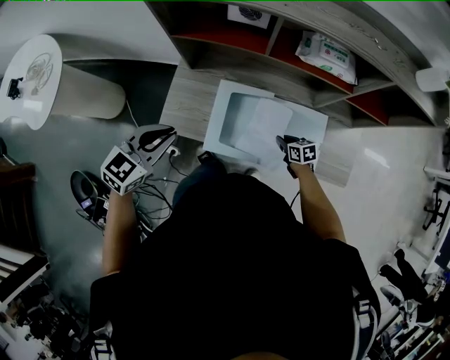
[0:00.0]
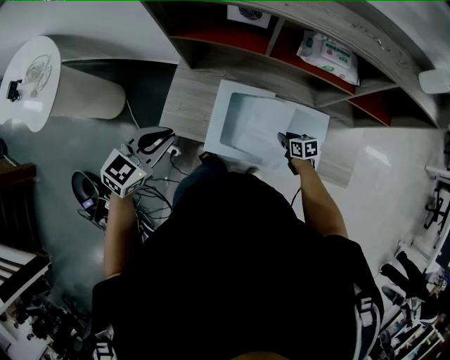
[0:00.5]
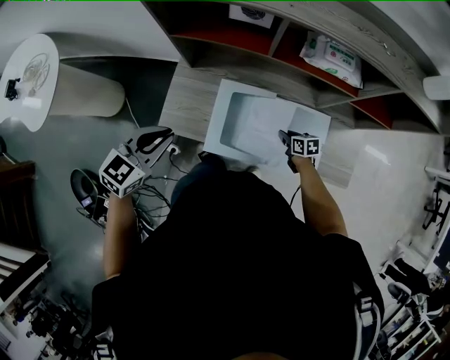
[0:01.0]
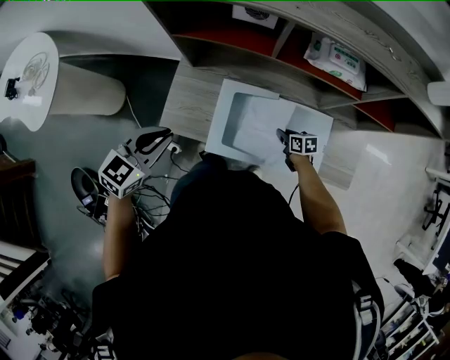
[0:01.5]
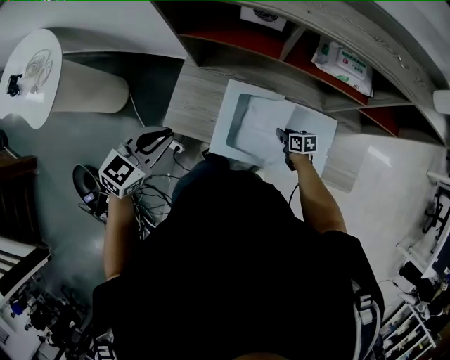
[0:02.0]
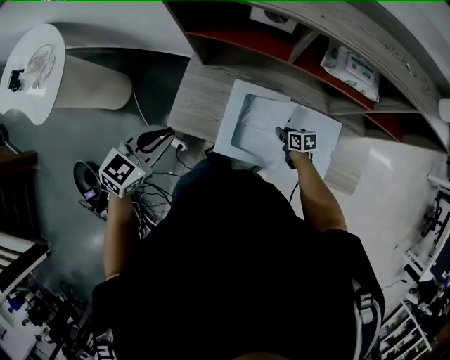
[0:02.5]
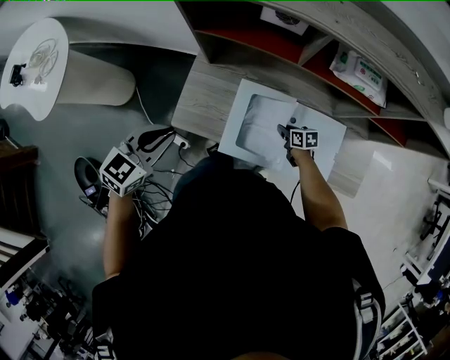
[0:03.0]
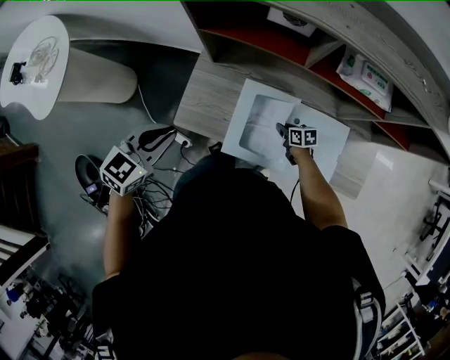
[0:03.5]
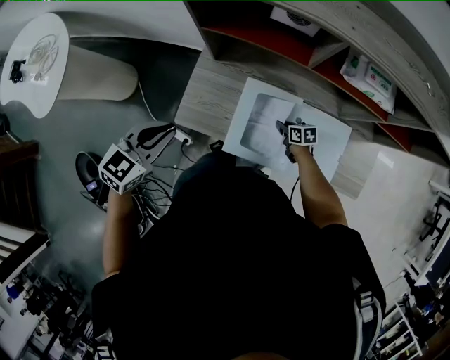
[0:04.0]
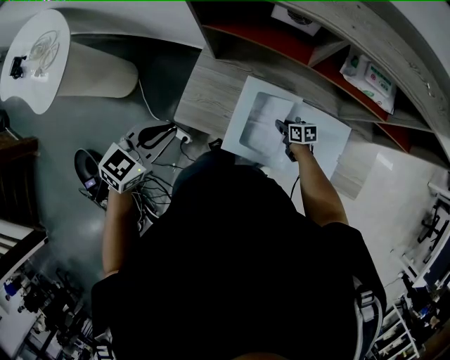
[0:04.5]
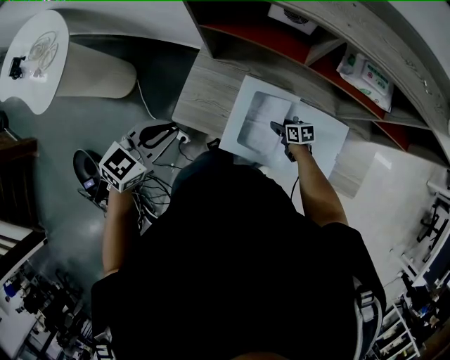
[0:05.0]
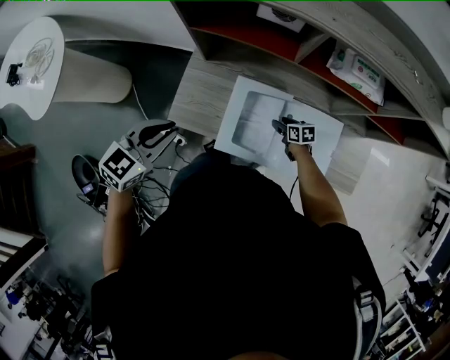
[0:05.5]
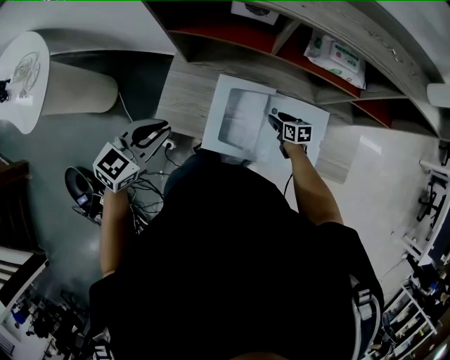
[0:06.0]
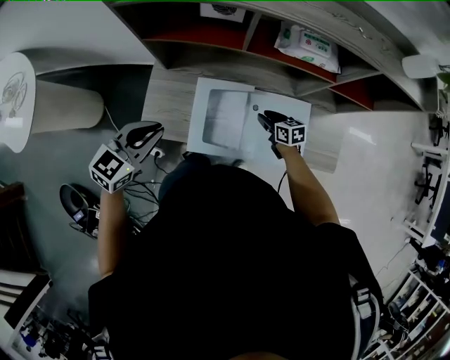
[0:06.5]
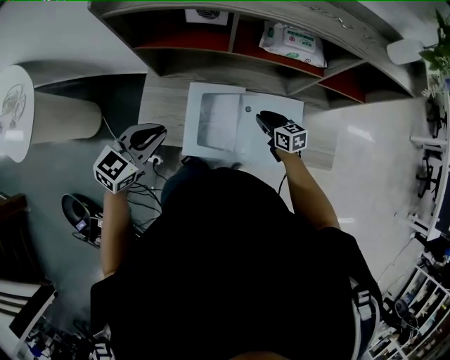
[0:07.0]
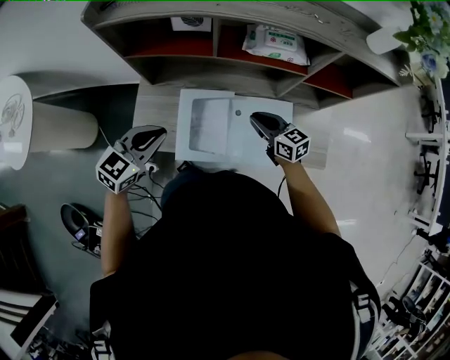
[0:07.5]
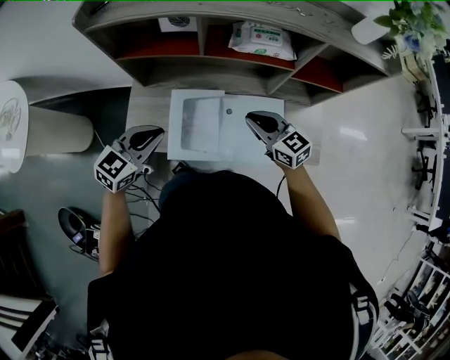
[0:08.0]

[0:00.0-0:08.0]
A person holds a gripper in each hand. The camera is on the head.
0:00.0 to 0:02.0: The right gripper moves some 5 cm.
0:02.0 to 0:04.0: The left gripper changes place by some 5 cm; the right gripper is displaced to the left by some 5 cm.
0:04.0 to 0:06.0: Both grippers travel together to the right, some 5 cm. The right gripper opens up.
0:06.0 to 0:08.0: The right gripper travels upward by approximately 30 cm, turns by roughly 40 degrees, and closes up; the left gripper goes some 15 cm to the right.

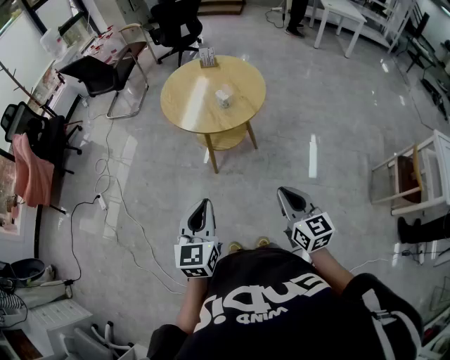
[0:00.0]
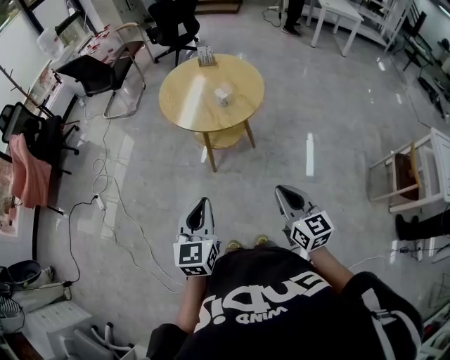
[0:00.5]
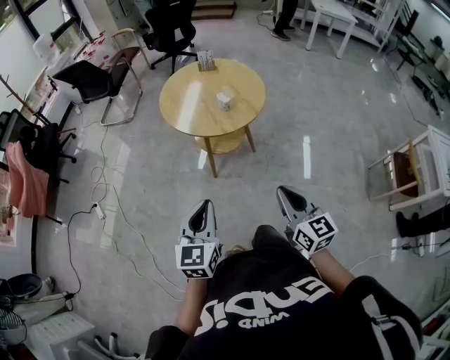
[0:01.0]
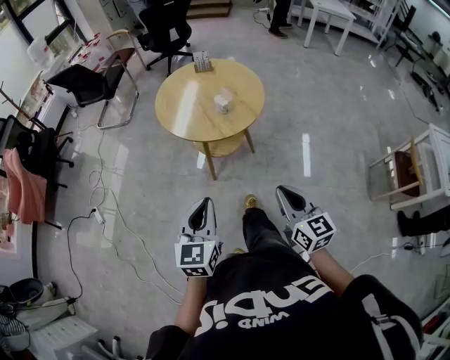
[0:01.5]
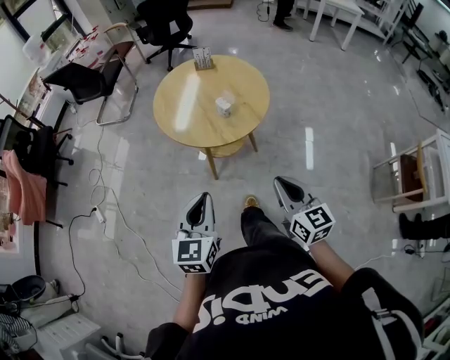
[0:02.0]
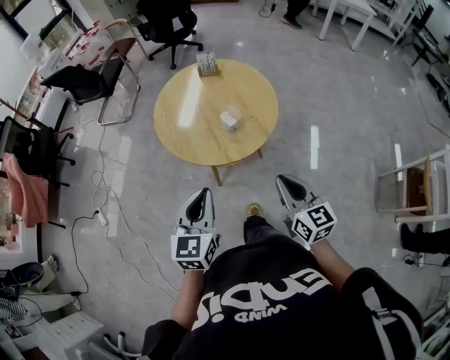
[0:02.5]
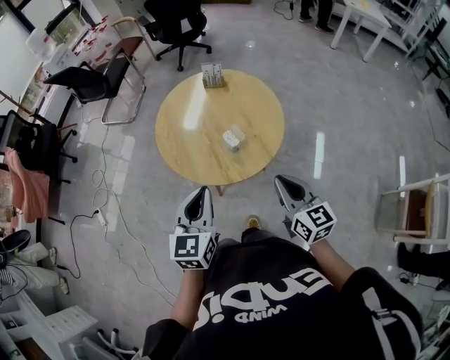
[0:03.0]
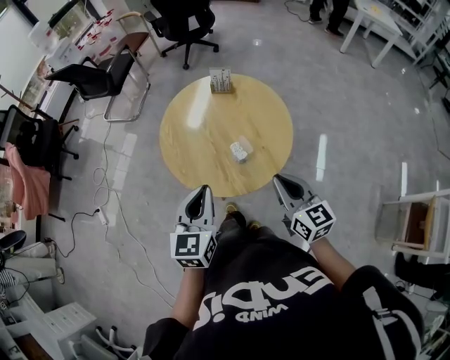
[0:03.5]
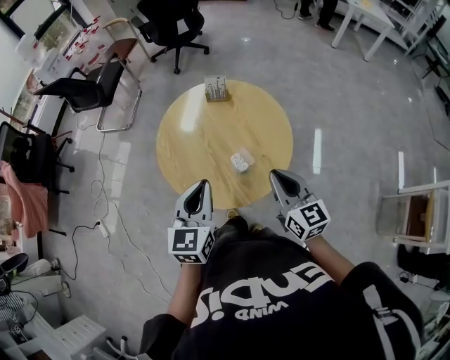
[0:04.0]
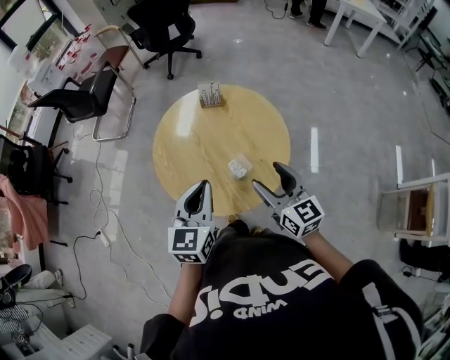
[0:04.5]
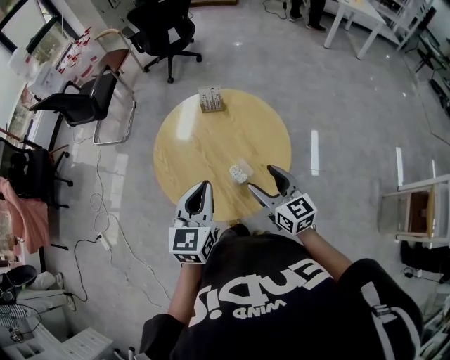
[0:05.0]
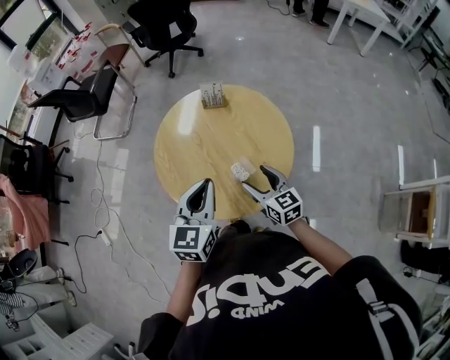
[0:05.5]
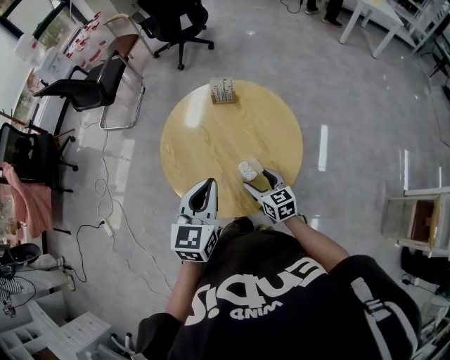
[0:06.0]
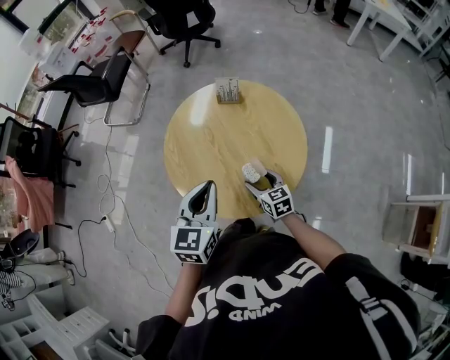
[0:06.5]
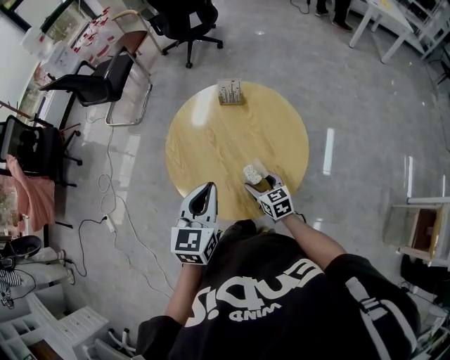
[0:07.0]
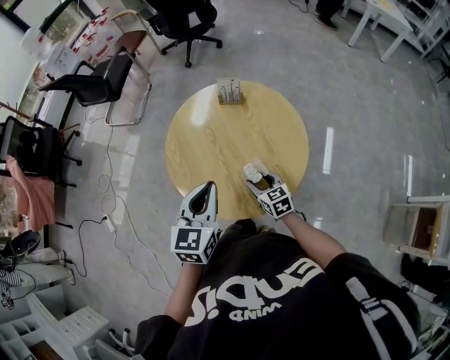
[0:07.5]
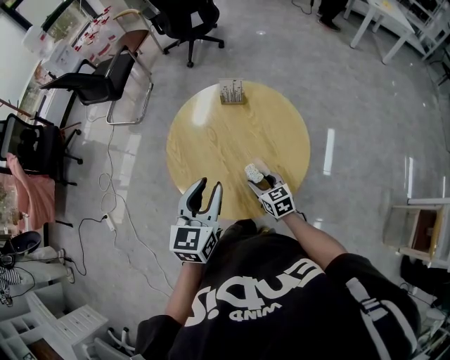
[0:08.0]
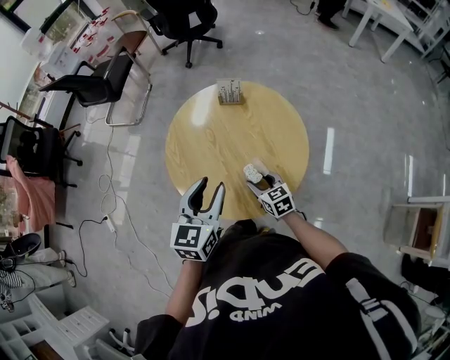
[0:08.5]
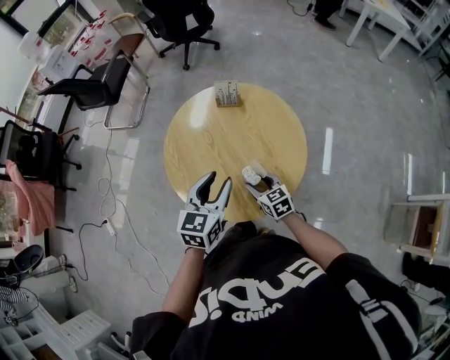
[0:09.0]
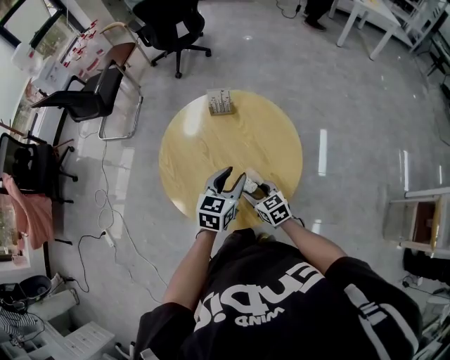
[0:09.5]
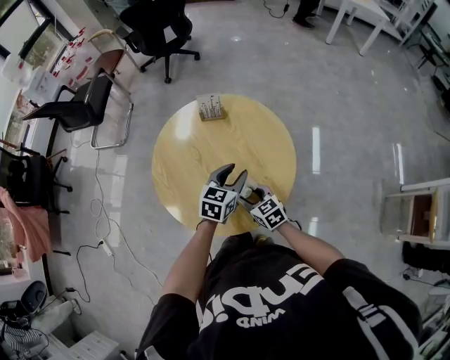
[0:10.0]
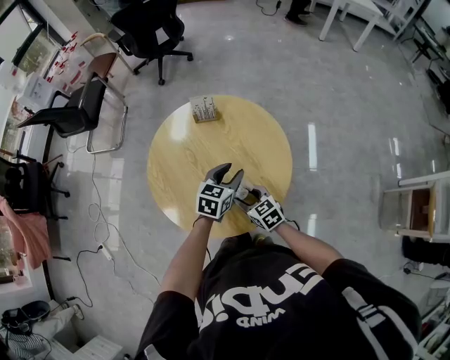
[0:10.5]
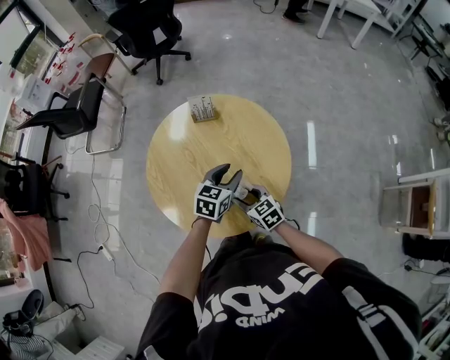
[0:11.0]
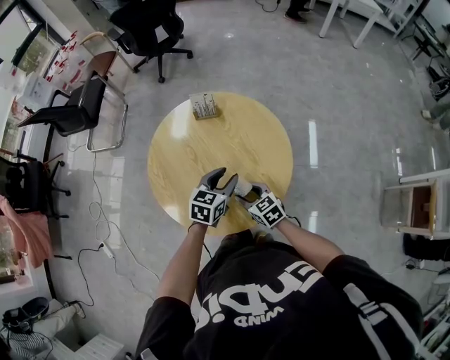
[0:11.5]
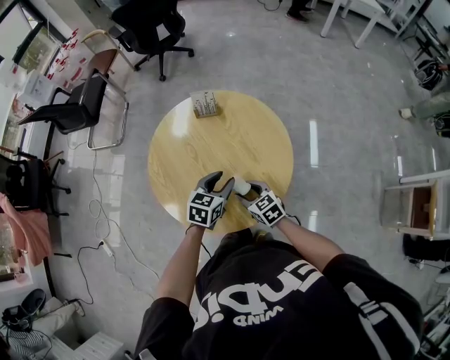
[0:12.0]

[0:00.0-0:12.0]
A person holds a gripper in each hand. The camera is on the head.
0:00.0 to 0:02.0: Both grippers move forward, some 15 cm.
0:02.0 to 0:04.0: Both grippers move forward, about 35 cm.
0:04.0 to 0:06.0: The right gripper is displaced downward by approximately 20 cm, turns by some 20 degrees, and opens up; the left gripper shifts by roughly 5 cm.
0:06.0 to 0:08.0: The left gripper opens.
0:08.0 to 0:10.0: The left gripper goes roughly 20 cm downward, to the right and forward, and turns by some 30 degrees.
0:10.0 to 0:12.0: The left gripper changes place by approximately 5 cm.

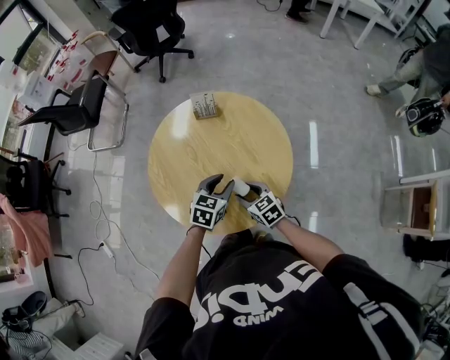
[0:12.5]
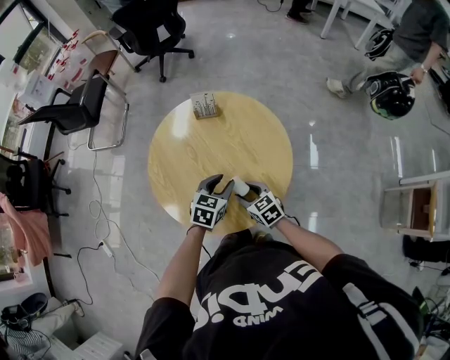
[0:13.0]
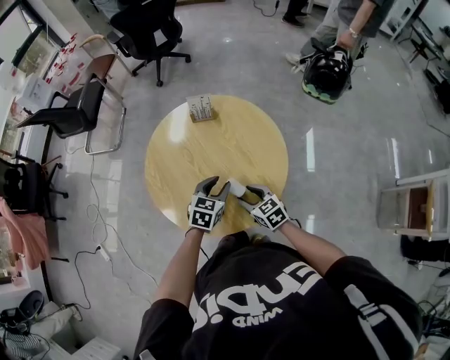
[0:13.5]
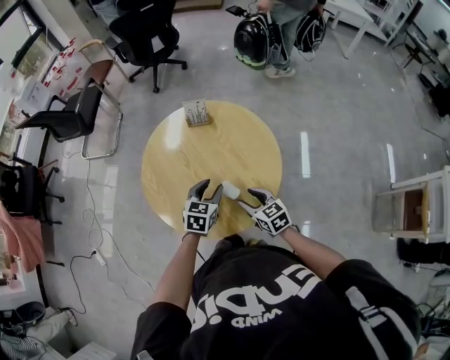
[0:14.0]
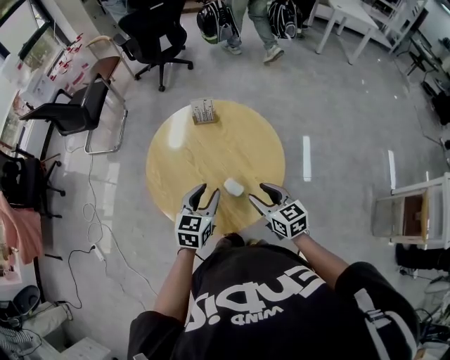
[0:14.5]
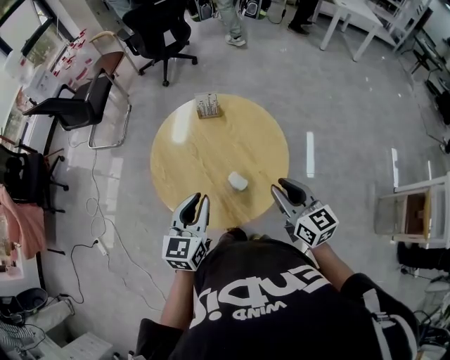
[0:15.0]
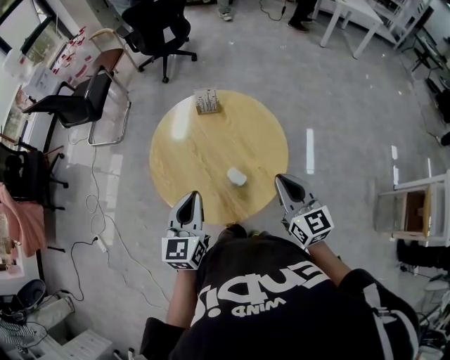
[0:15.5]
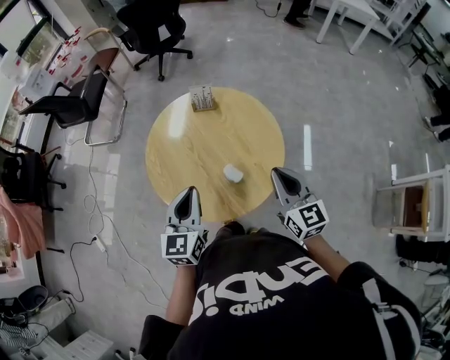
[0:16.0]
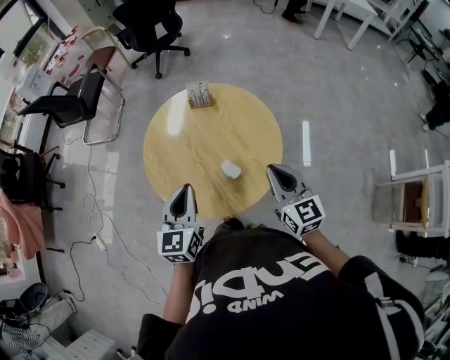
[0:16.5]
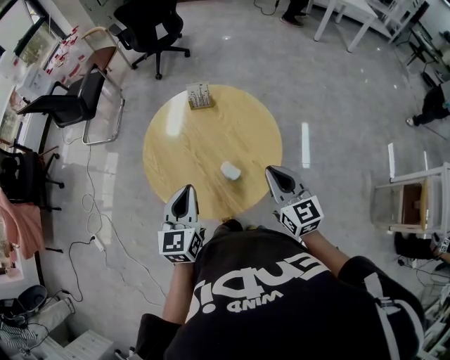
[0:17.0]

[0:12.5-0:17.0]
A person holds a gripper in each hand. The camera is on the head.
0:12.5 to 0:14.5: The right gripper travels upward and to the right by roughly 15 cm; the left gripper goes approximately 10 cm upward.
0:14.5 to 0:17.0: The right gripper heads upward, covering about 10 cm, and closes its fingers. Meanwhile the left gripper heads upward, to the left and backward, covering approximately 10 cm, and closes its fingers.

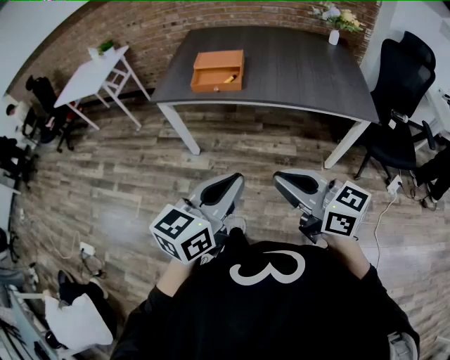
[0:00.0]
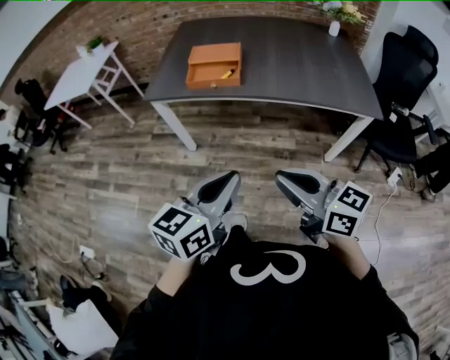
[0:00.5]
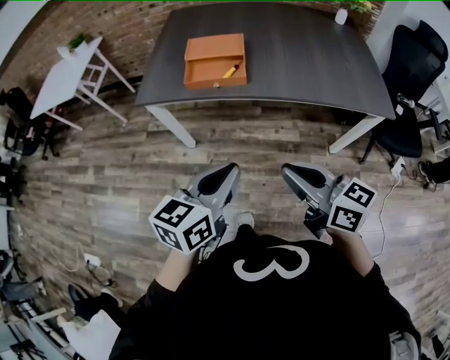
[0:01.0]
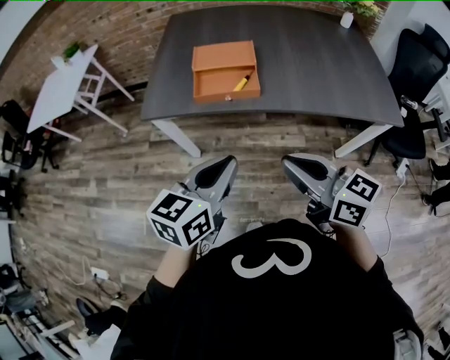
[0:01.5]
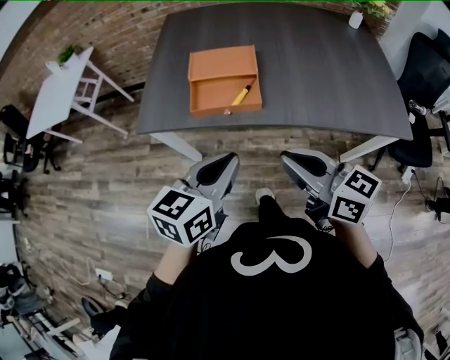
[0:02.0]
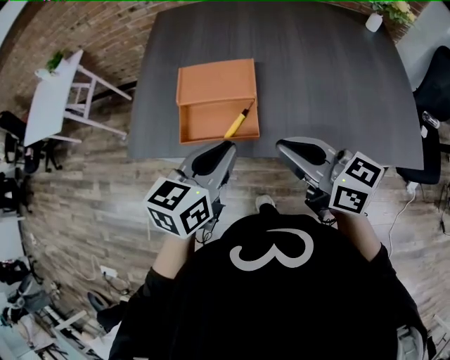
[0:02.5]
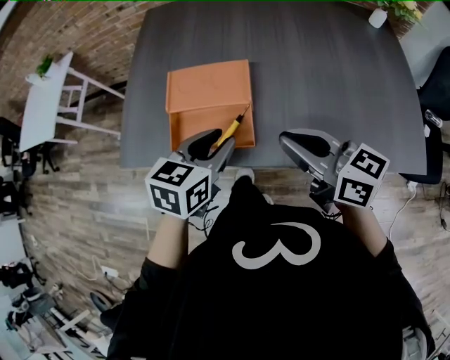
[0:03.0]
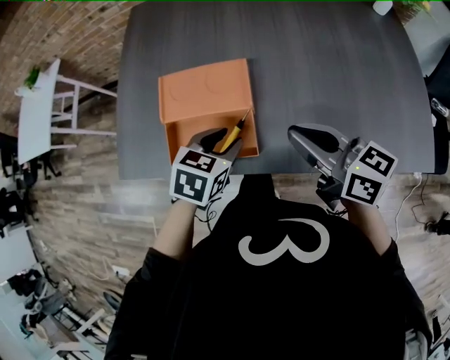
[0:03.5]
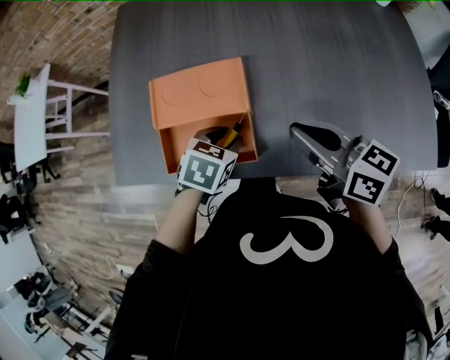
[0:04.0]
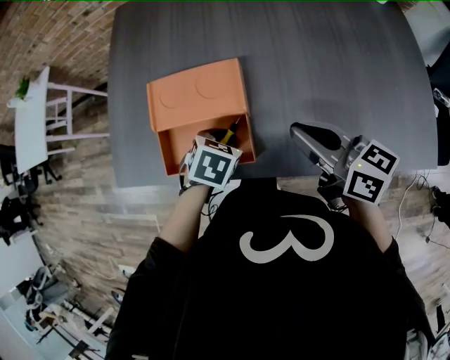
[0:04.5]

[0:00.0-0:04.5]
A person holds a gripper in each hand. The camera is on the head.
0:00.0 to 0:02.0: Both grippers travel together forward, roughly 30 cm.
0:02.0 to 0:04.5: The right gripper is displaced forward and to the right by some 25 cm; the left gripper travels forward and downward by roughly 35 cm, points its fingers about 50 degrees further downward, and opens.
